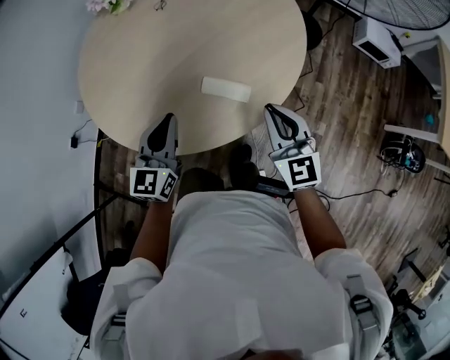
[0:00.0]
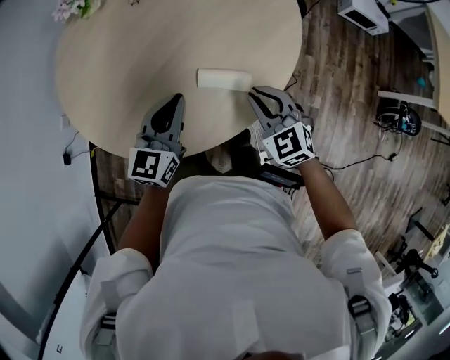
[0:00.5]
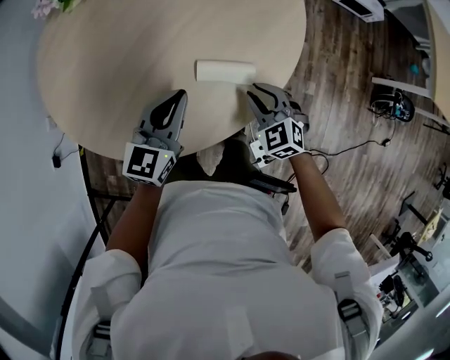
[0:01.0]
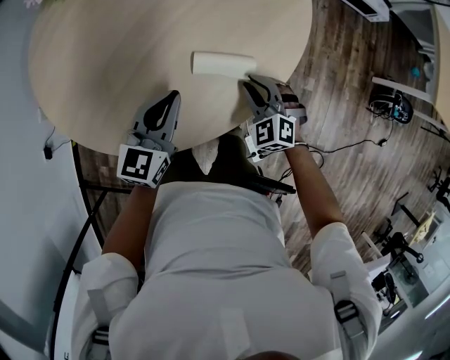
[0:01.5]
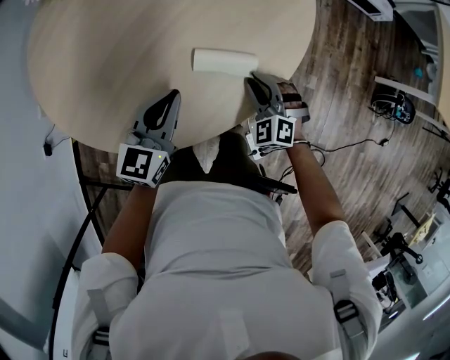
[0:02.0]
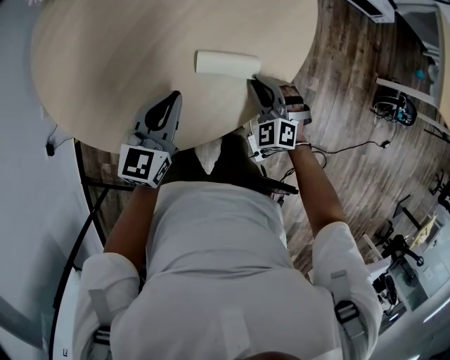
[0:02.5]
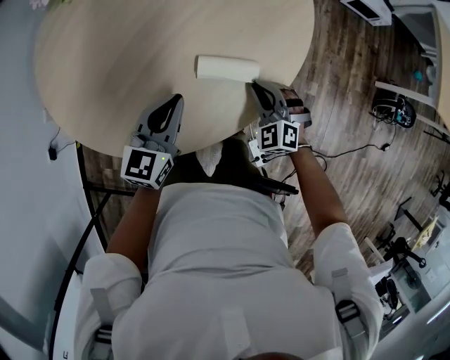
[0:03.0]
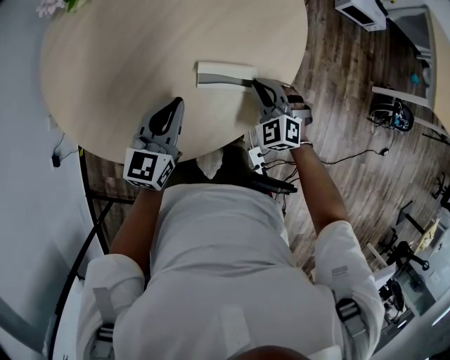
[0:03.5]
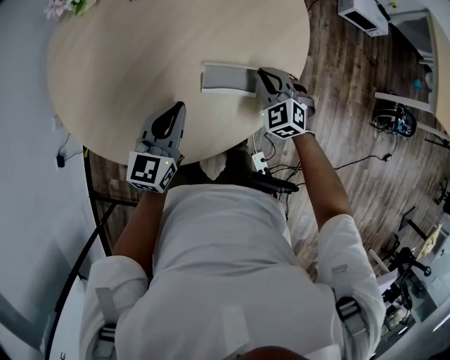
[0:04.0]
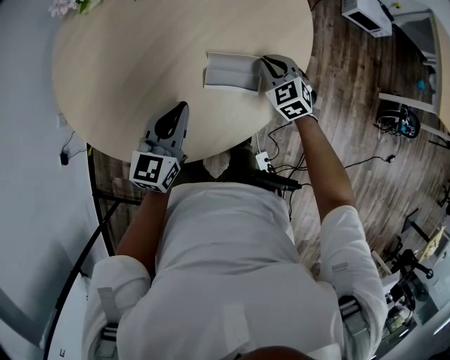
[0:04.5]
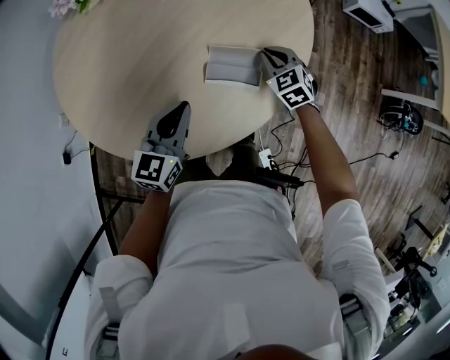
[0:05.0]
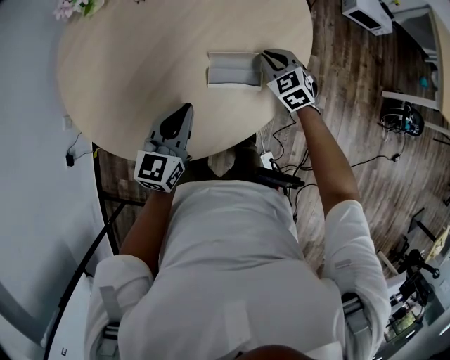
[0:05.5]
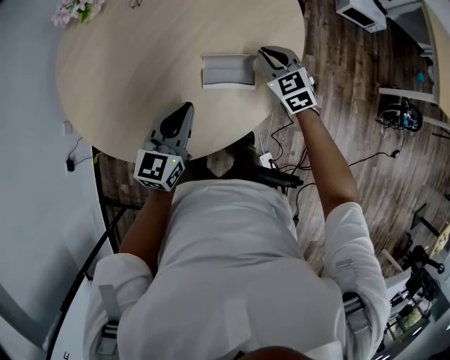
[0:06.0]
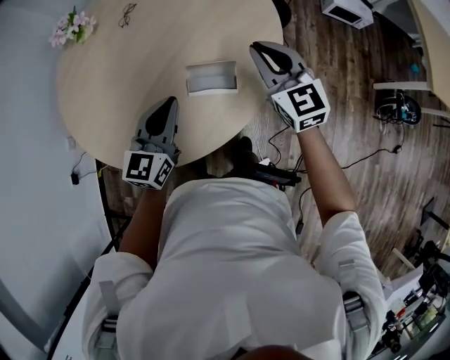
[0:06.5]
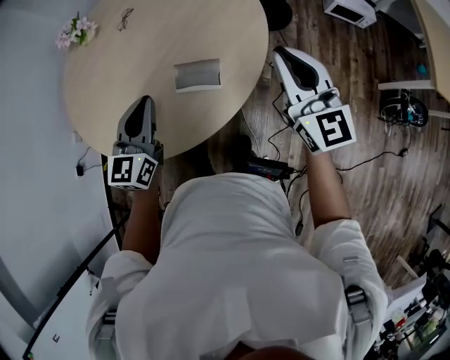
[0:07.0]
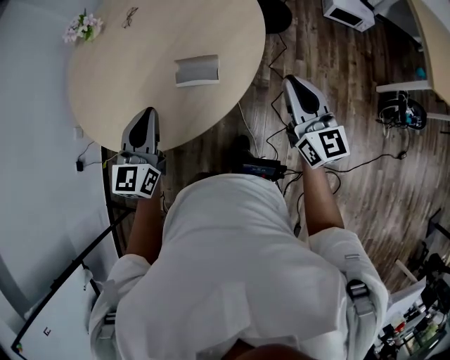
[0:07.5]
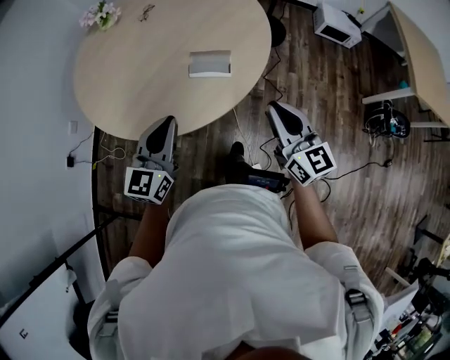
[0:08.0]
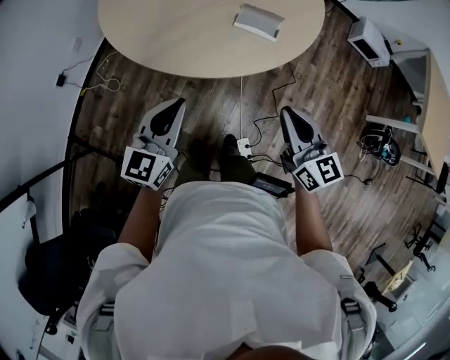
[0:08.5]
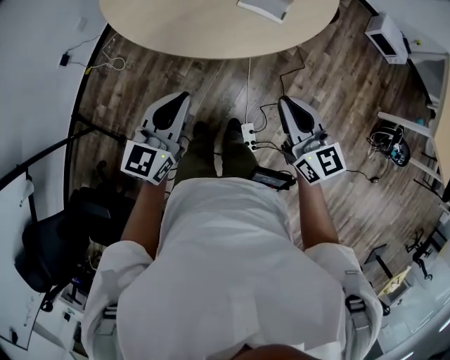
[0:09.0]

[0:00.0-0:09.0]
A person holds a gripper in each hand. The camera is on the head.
0:00.0 to 0:02.0: The right gripper moves downward, some 20 cm, and rotates approximately 50 degrees, while the left gripper goes approximately 10 cm downward, and turns by approximately 20 degrees.
0:02.0 to 0:04.5: The right gripper heads forward, covering about 10 cm, and changes its angle by roughly 20 degrees.
0:04.5 to 0:07.0: The left gripper goes roughly 15 cm upward and to the right. Meanwhile the right gripper goes about 35 cm upward and to the right, and tilts its fingers approximately 40 degrees upward.
0:07.0 to 0:09.0: The right gripper moves backward, to the left and downward, about 35 cm, and turns by about 30 degrees; the left gripper moves backward, approximately 30 cm.

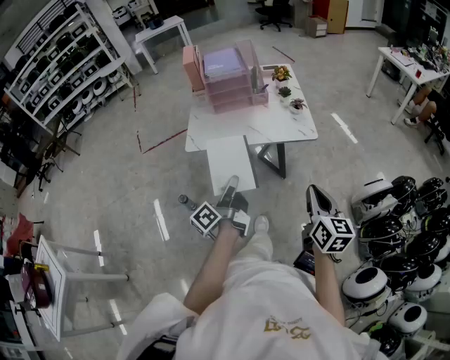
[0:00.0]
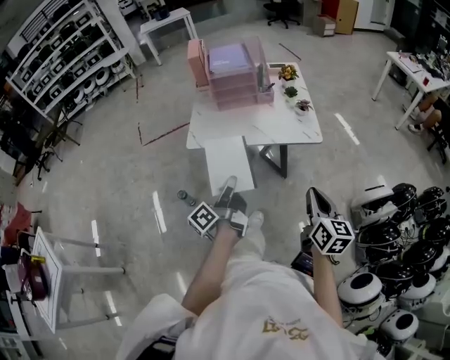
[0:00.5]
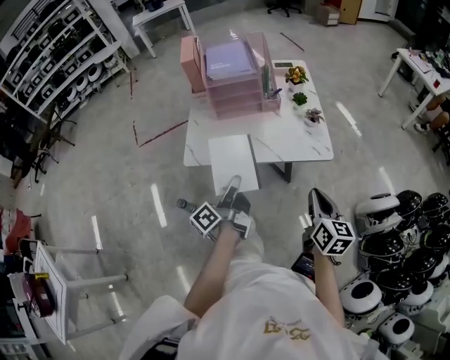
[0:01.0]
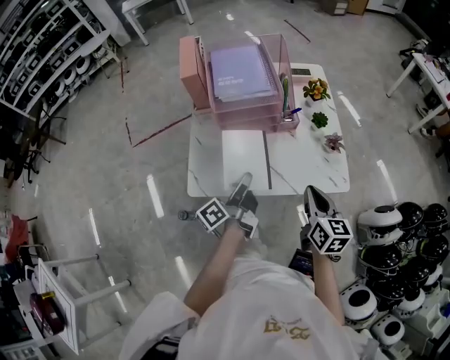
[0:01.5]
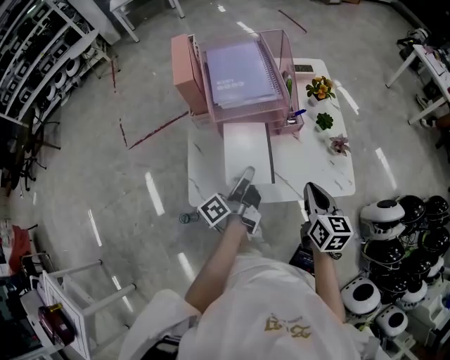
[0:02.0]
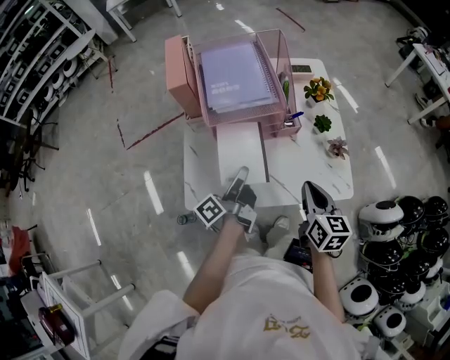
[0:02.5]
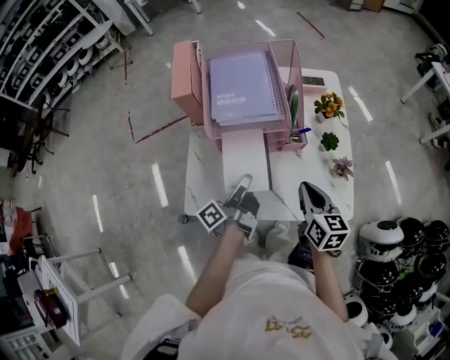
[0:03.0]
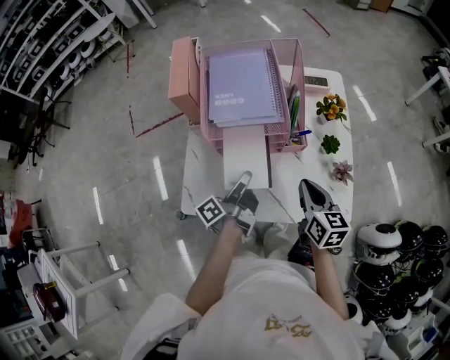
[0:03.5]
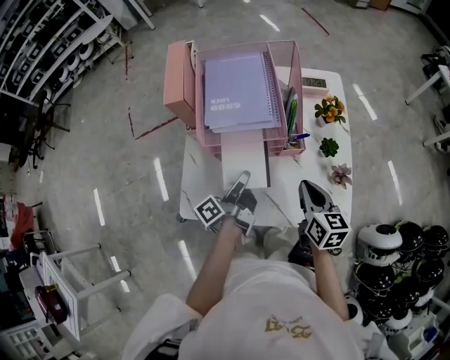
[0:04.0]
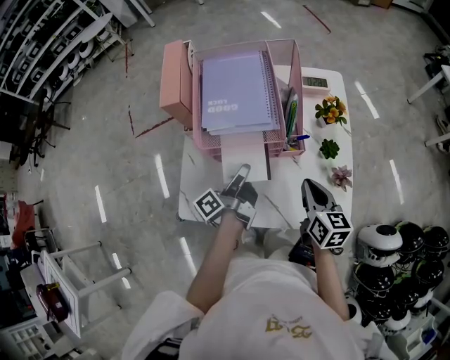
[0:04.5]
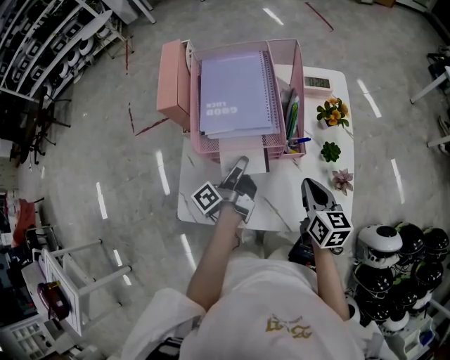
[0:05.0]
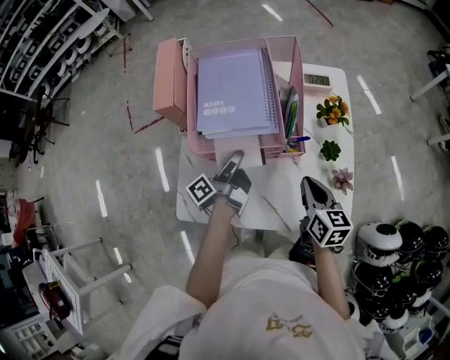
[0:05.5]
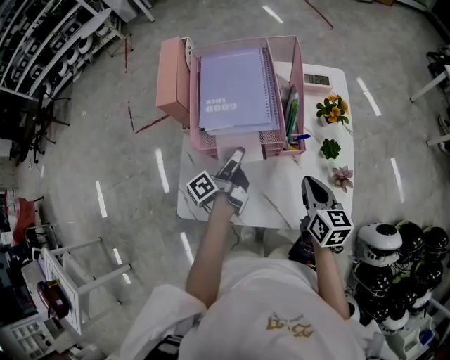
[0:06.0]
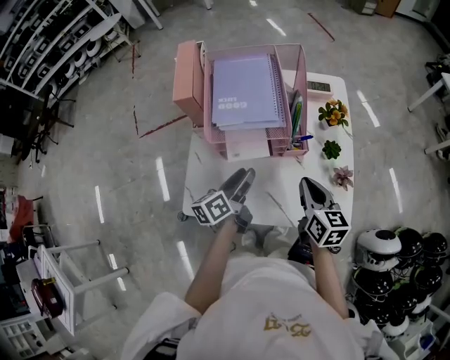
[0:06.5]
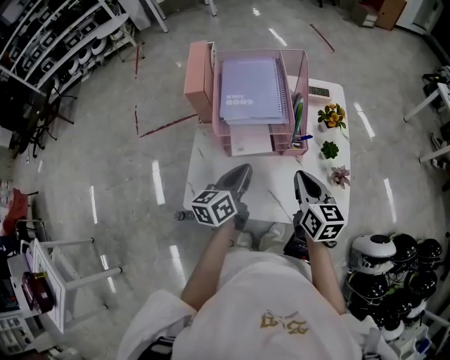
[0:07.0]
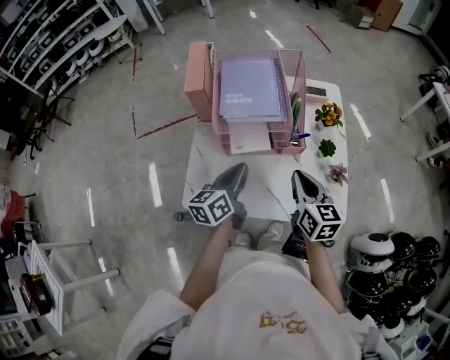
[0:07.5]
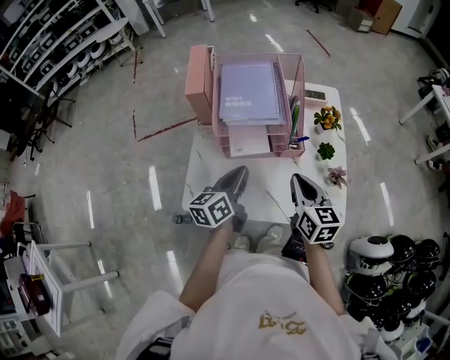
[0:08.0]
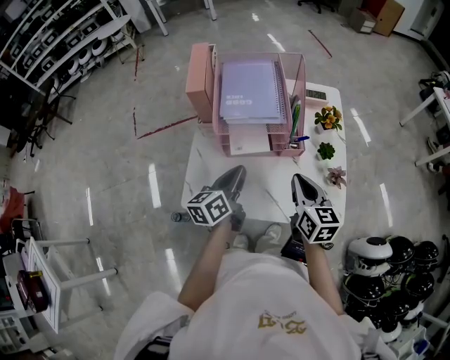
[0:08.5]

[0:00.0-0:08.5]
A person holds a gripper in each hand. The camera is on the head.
0:00.0 to 0:02.0: The right gripper ends up some 40 cm from where it was.
0:02.0 to 0:04.0: The right gripper shifts by some 10 cm.
0:06.5 to 0:08.5: The right gripper changes place by some 5 cm.

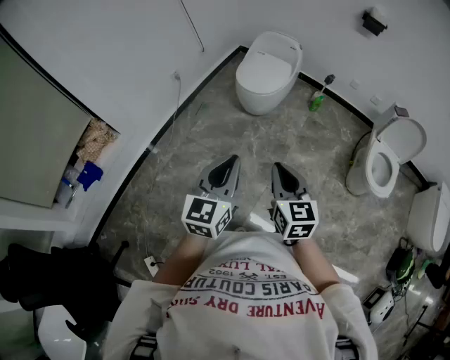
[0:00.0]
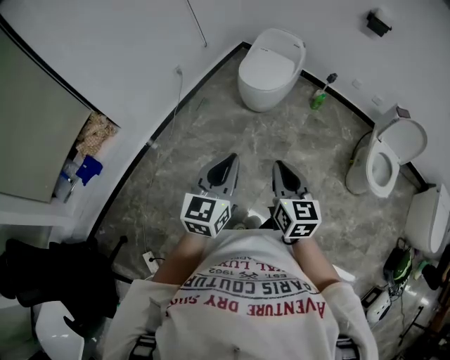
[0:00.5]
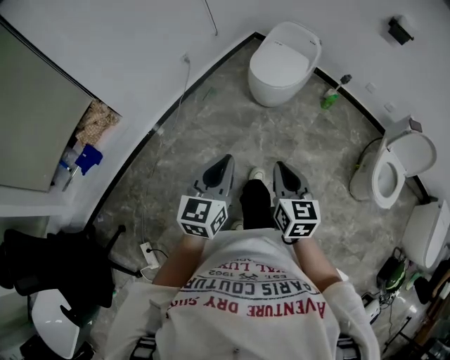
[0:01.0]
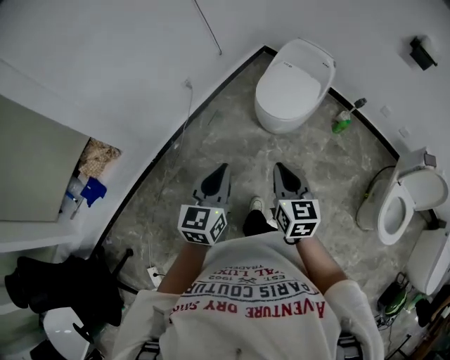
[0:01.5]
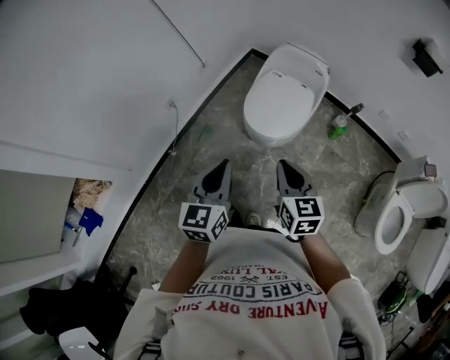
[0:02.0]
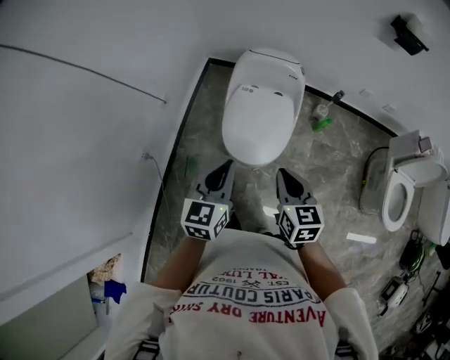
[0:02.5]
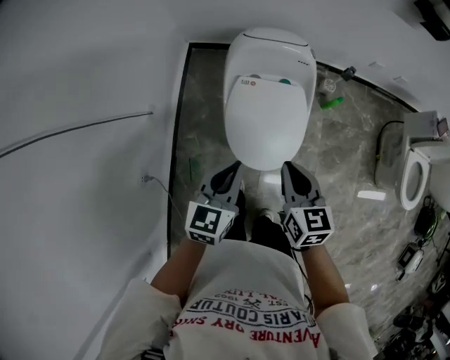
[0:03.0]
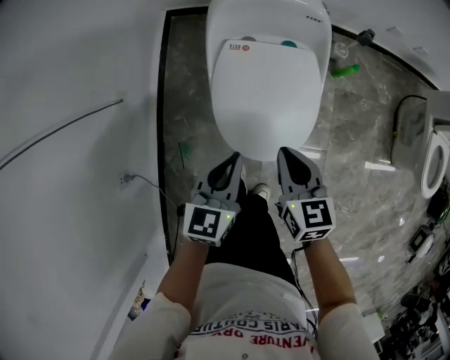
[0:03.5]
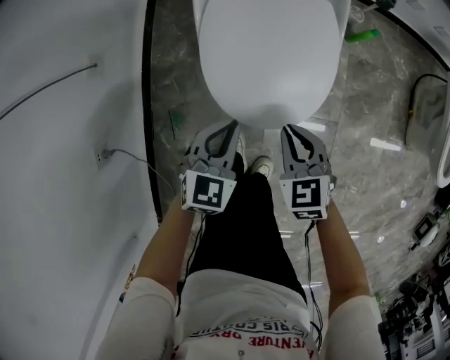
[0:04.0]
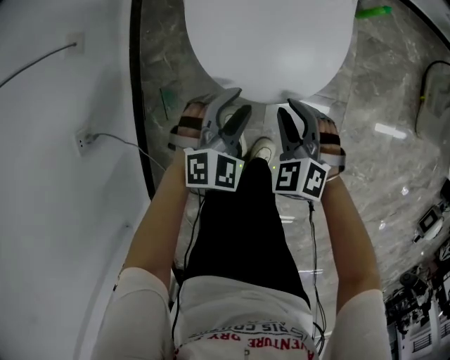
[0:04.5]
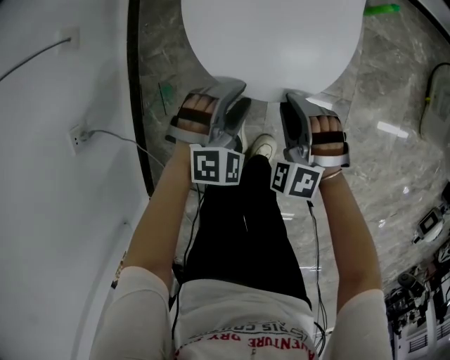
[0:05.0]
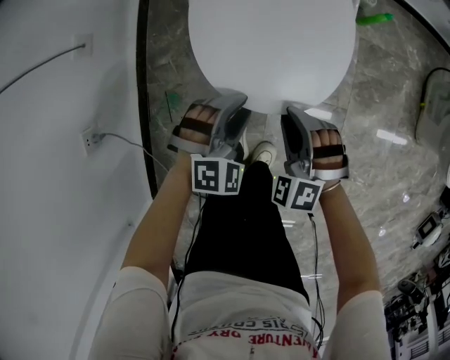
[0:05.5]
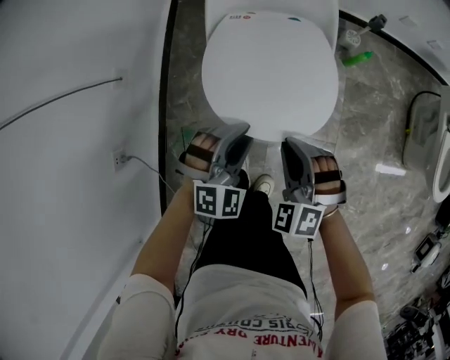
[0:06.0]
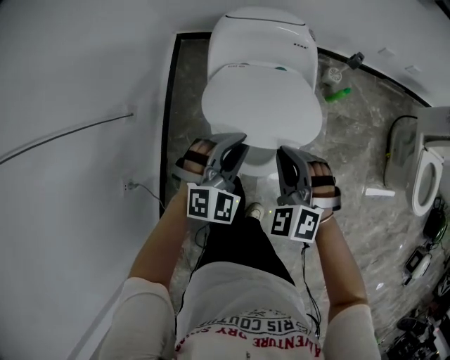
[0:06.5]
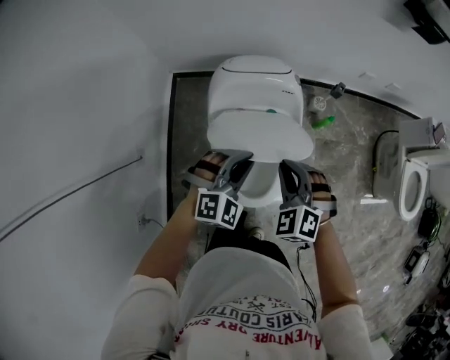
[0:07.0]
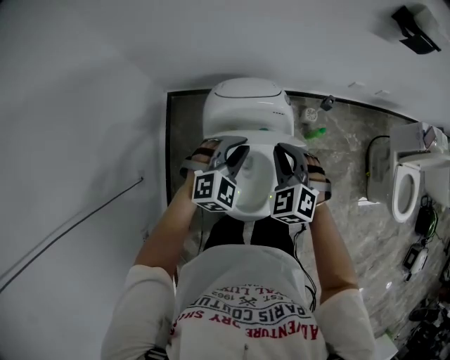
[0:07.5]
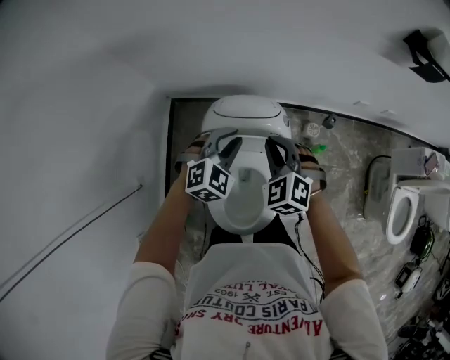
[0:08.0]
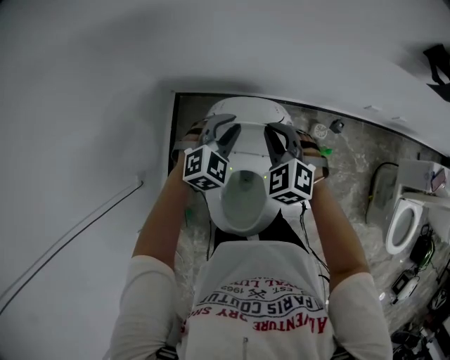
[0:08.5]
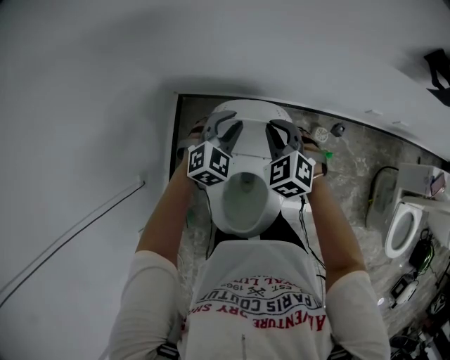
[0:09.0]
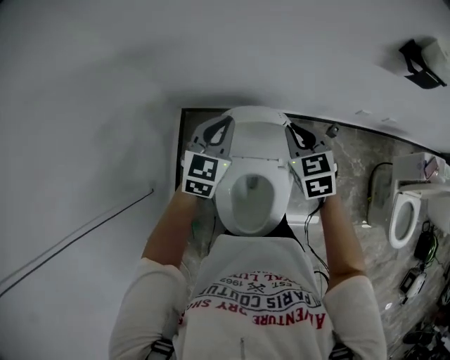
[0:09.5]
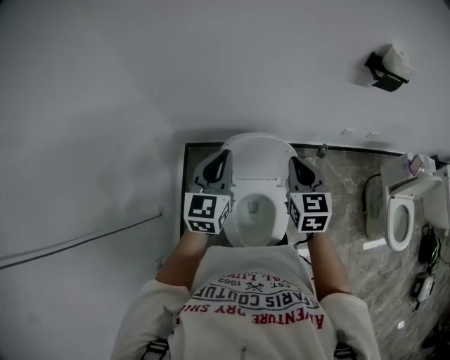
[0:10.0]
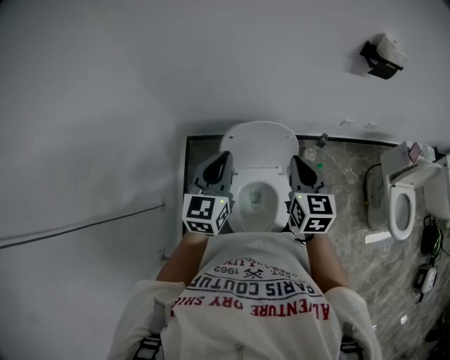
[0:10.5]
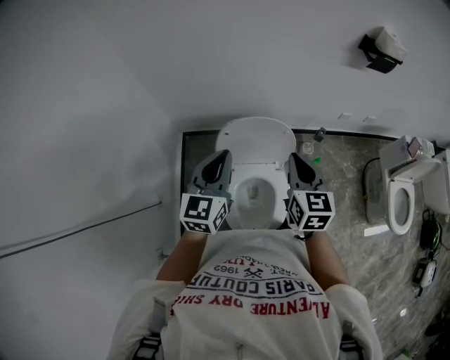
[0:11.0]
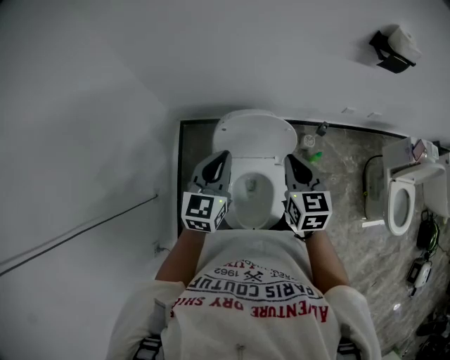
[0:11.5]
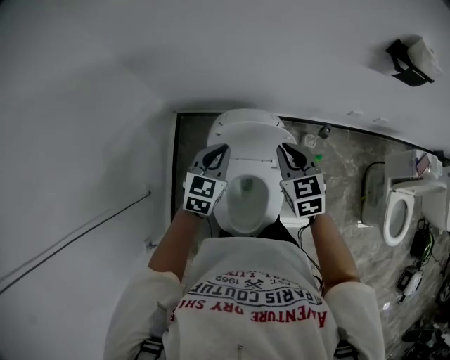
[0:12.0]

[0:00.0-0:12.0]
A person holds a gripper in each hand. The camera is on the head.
0:00.0 to 0:02.0: The pair of grippers is taken forward, approximately 50 cm.
0:02.0 to 0:04.0: Both grippers travel together downward, about 50 cm. The left gripper swivels some 50 degrees. The right gripper turns by some 30 degrees.
0:04.0 to 0:06.0: The left gripper travels upward and to the right by roughly 10 cm, twists approximately 40 degrees clockwise, seen from behind, and opens its fingers, while the right gripper travels upward by about 10 cm, and rotates around the line of its fingers by about 40 degrees, counterclockwise from behind.
0:06.0 to 0:08.0: The two grippers go about 40 cm forward and upward.
0:08.0 to 0:10.0: The right gripper is displaced upward and backward by approximately 20 cm, and rotates around the line of its fingers by approximately 50 degrees, clockwise from behind, while the left gripper travels upward by roughly 20 cm, and rotates roughly 50 degrees.
0:10.0 to 0:12.0: The left gripper shifts some 15 cm downward, and changes its angle by about 20 degrees; the right gripper heads downward and forward, covering roughly 10 cm.
